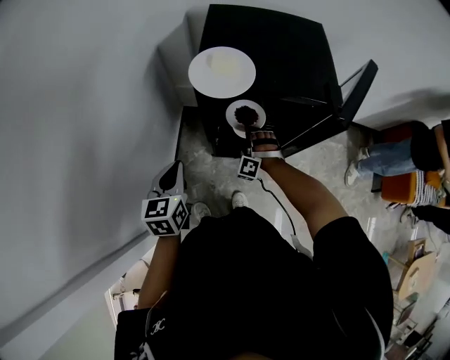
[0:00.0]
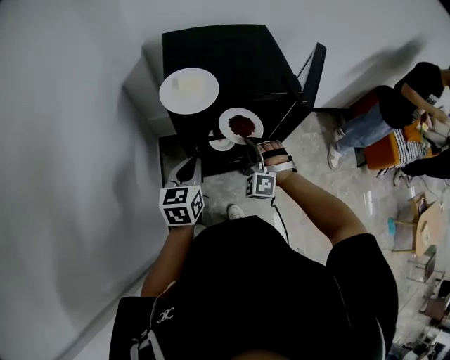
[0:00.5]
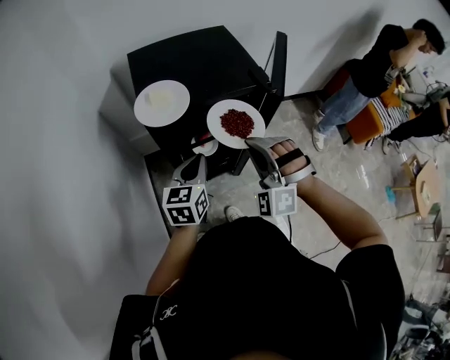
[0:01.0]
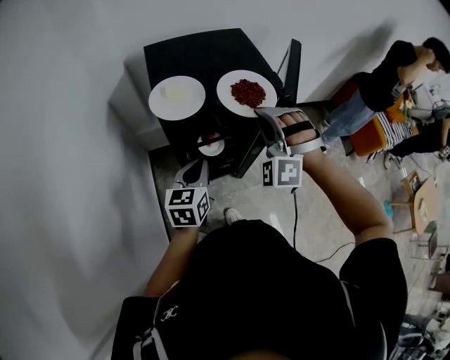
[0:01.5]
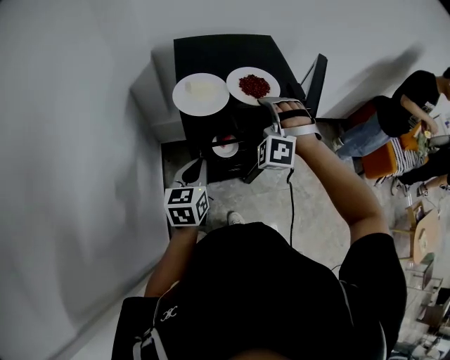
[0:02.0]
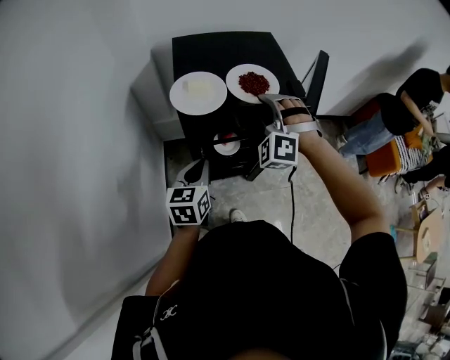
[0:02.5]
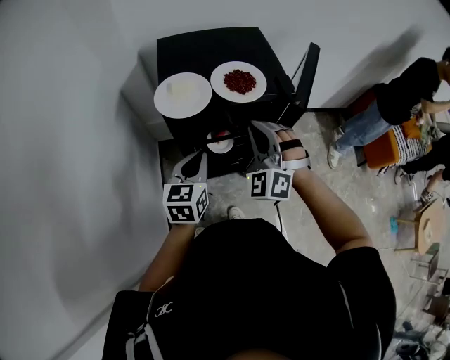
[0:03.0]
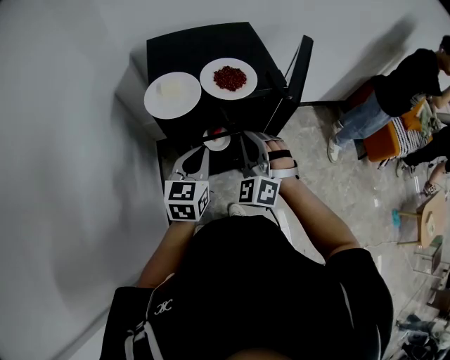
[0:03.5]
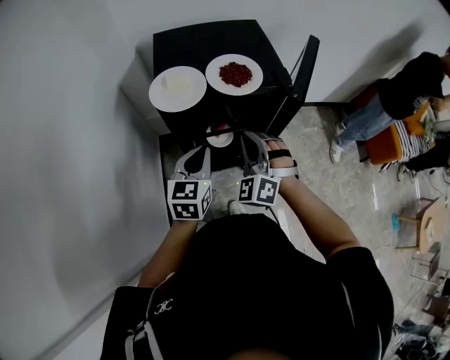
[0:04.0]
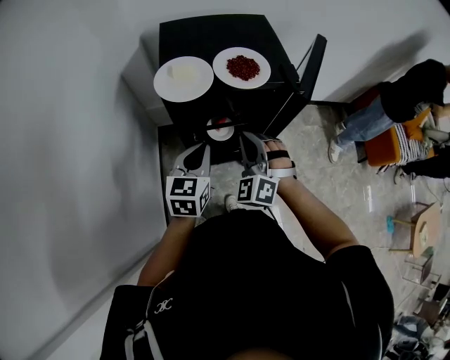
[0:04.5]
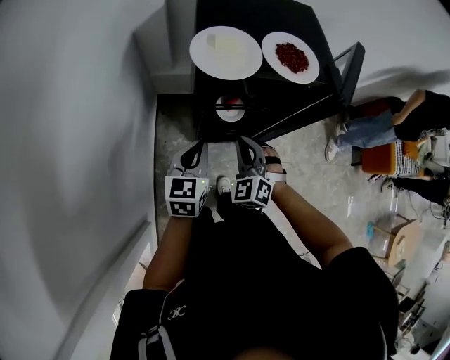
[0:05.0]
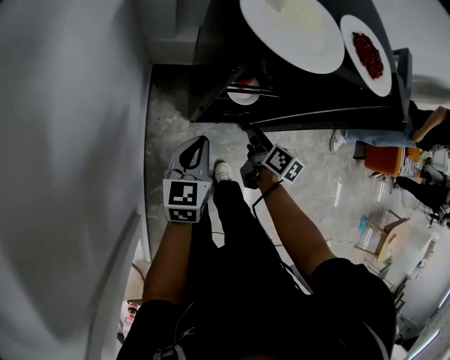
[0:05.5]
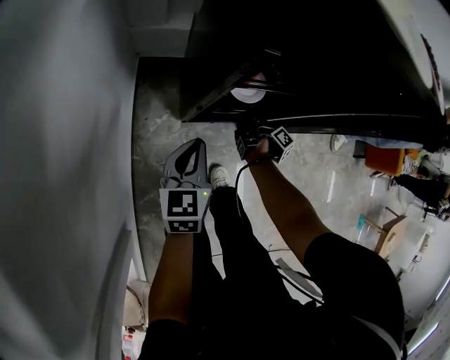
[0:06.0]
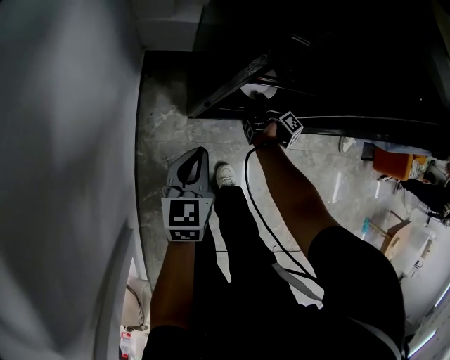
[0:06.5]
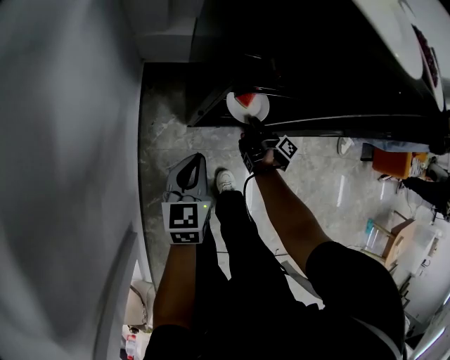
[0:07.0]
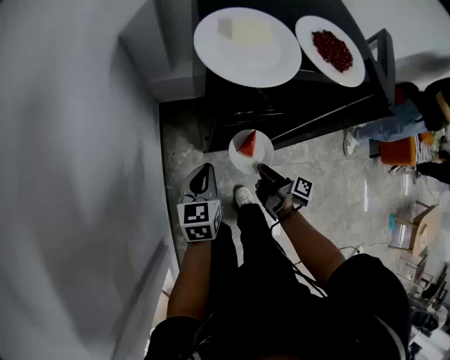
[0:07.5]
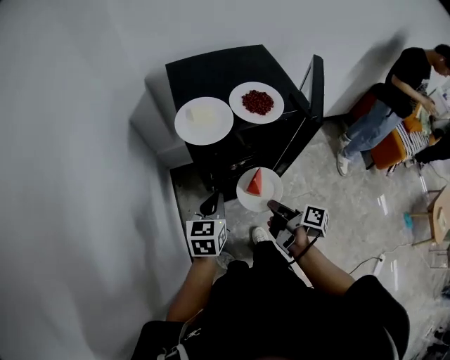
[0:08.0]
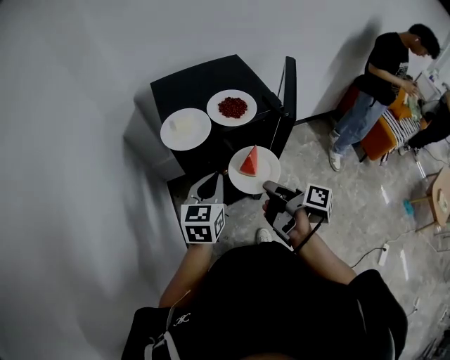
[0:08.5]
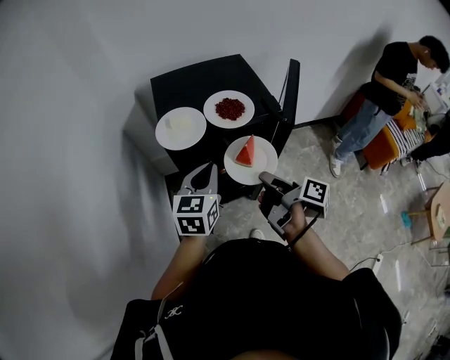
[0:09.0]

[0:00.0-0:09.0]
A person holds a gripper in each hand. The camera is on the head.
0:02.0 to 0:04.5: The left gripper ends up roughly 5 cm from where it was.
0:04.5 to 0:07.0: The left gripper travels downward by about 30 cm.
0:07.0 to 0:09.0: The left gripper shifts approximately 35 cm upward, and rotates approximately 20 degrees.

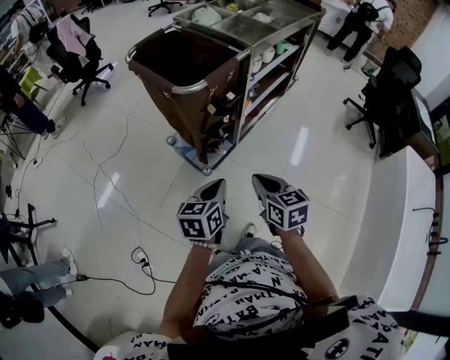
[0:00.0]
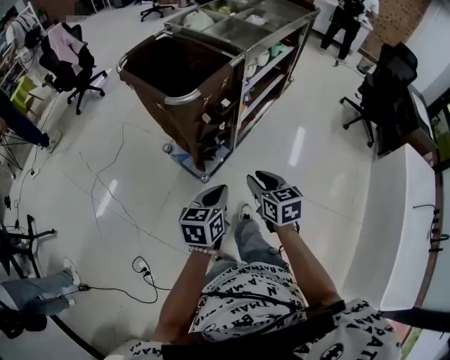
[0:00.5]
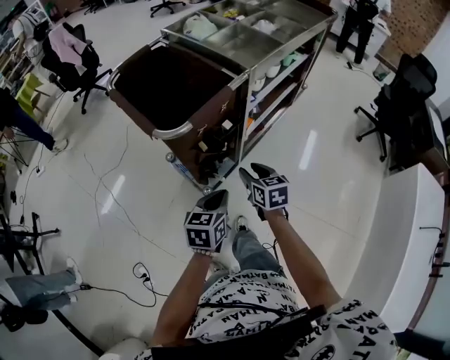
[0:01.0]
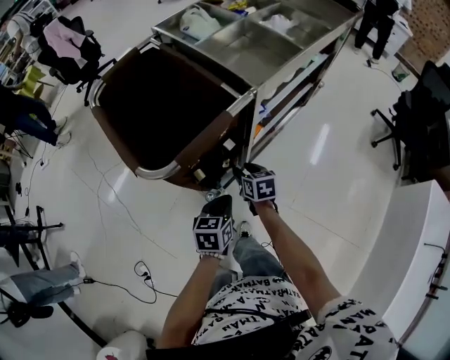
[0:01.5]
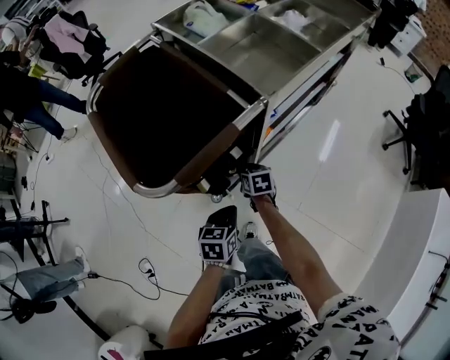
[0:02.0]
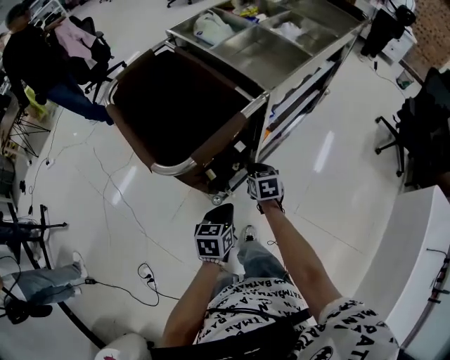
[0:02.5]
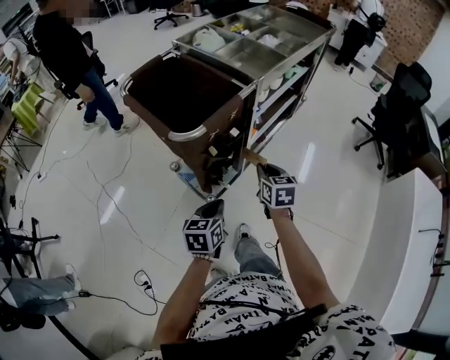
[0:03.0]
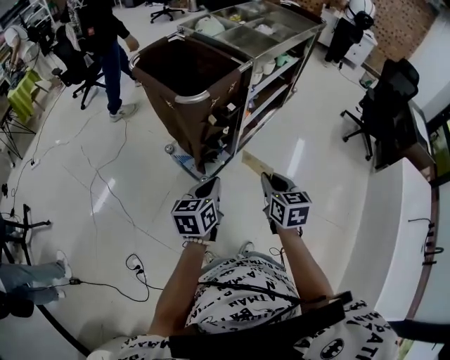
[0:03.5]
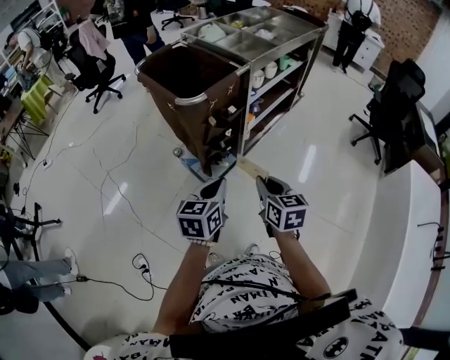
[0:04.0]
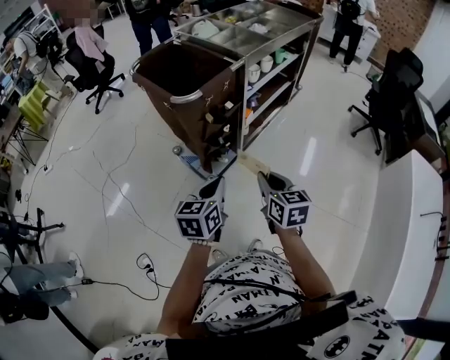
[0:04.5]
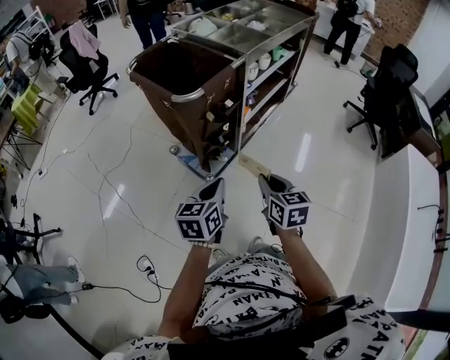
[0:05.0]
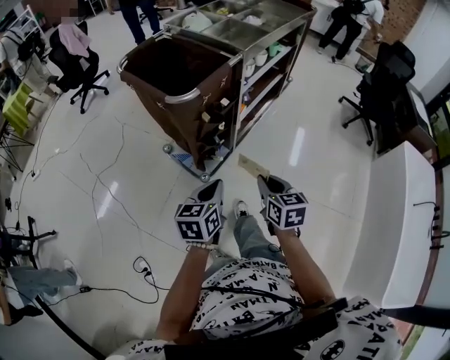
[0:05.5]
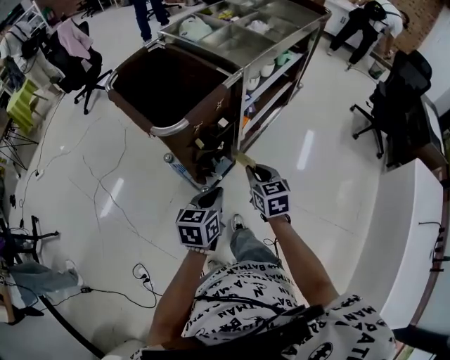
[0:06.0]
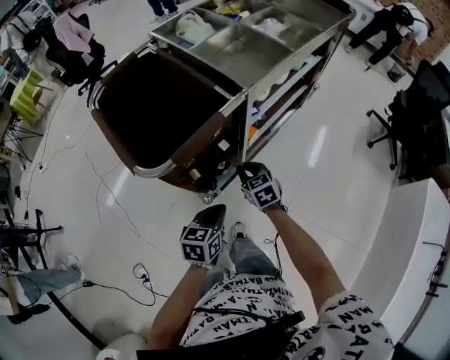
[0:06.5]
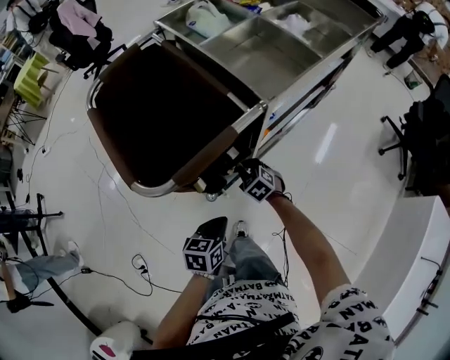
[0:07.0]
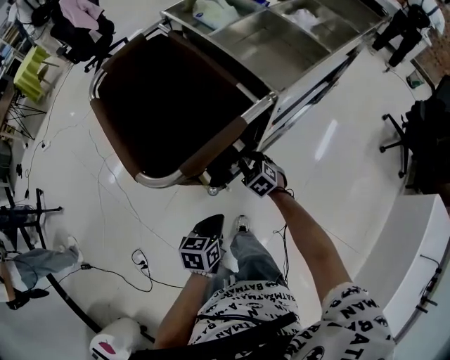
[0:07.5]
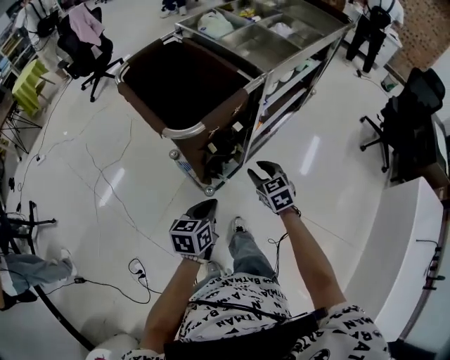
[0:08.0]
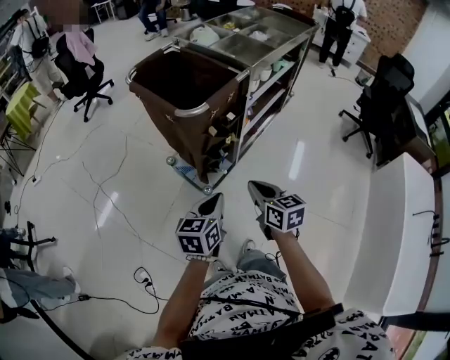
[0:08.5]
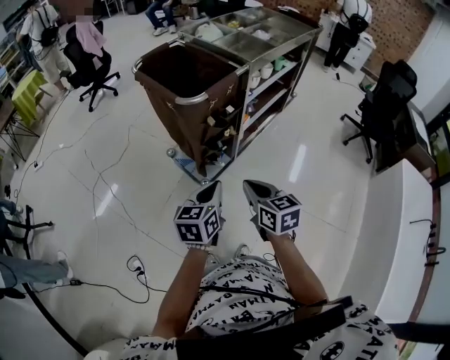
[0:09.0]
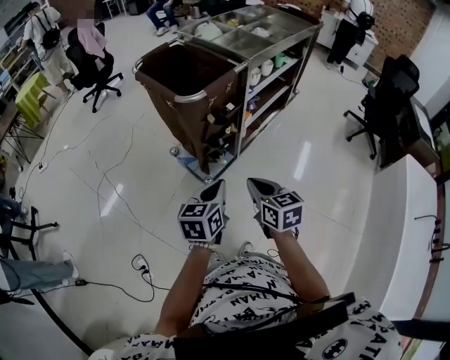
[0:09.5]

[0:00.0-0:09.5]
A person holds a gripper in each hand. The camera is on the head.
0:00.0 to 0:02.0: The right gripper travels forward and downward by approximately 50 cm, changes its angle by approximately 20 degrees, and opens its fingers. The left gripper goes about 30 cm forward and downward.
0:02.0 to 0:04.0: The left gripper moves backward and upward, approximately 30 cm, and swivels some 20 degrees; the right gripper travels backward and upward by about 50 cm, and swivels some 30 degrees.
0:04.0 to 0:05.5: The grippers make only small movements.
0:05.5 to 0:07.5: The left gripper travels forward and downward by approximately 20 cm, and swivels some 20 degrees, while the right gripper travels forward and downward by about 40 cm, and rolls counterclockwise, seen from behind, by roughly 40 degrees.
0:07.5 to 0:09.5: The right gripper travels backward and upward by about 50 cm, rotates approximately 50 degrees, and closes its fingers; the left gripper heads backward and upward, covering about 25 cm, and rotates about 20 degrees.

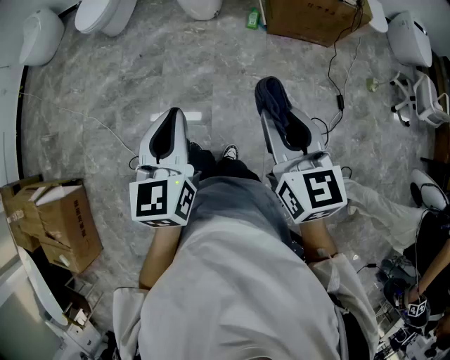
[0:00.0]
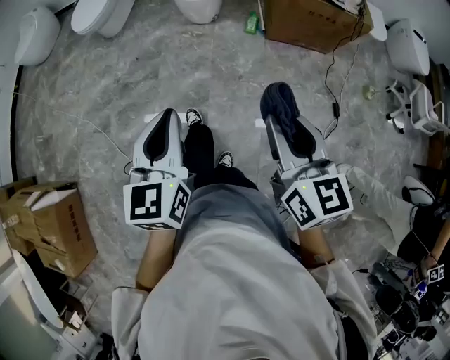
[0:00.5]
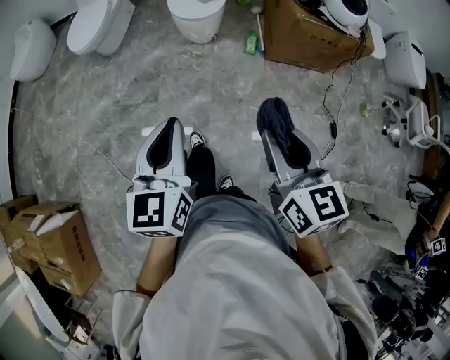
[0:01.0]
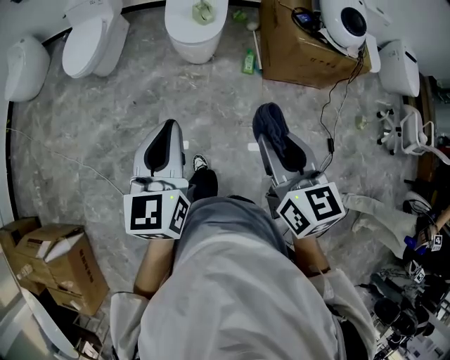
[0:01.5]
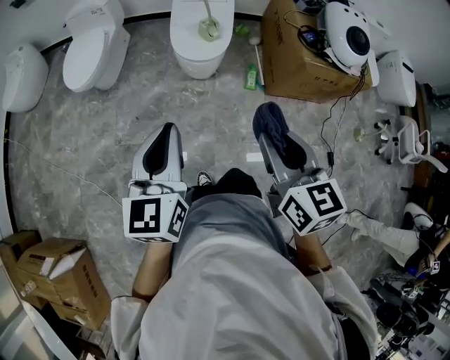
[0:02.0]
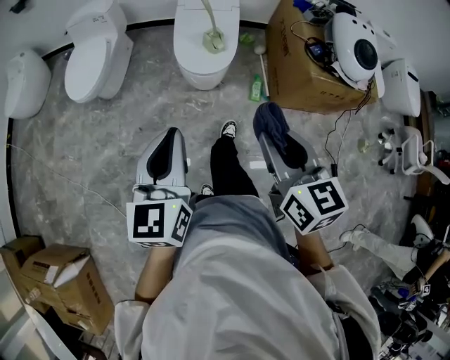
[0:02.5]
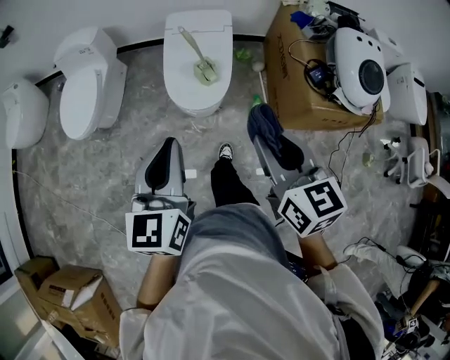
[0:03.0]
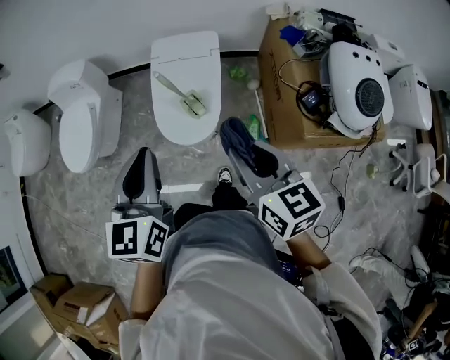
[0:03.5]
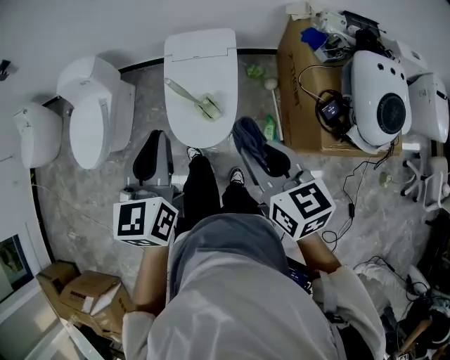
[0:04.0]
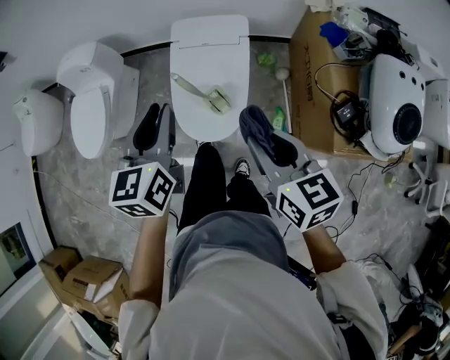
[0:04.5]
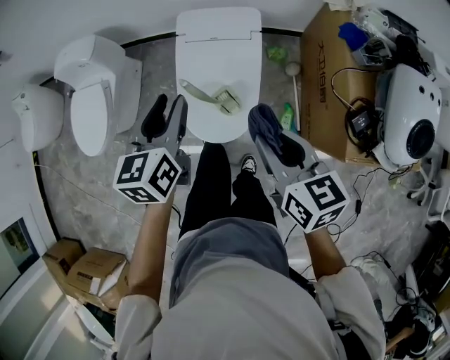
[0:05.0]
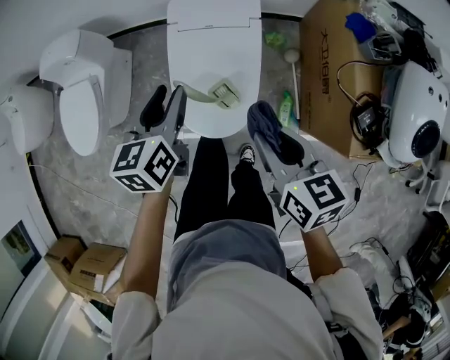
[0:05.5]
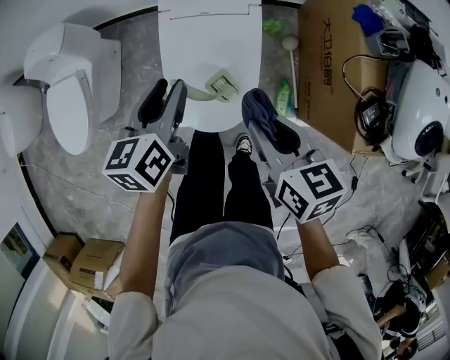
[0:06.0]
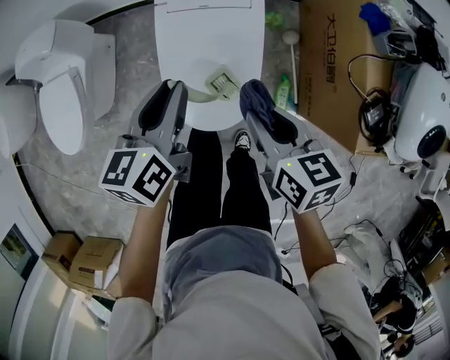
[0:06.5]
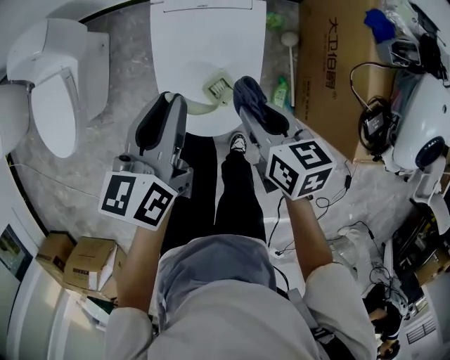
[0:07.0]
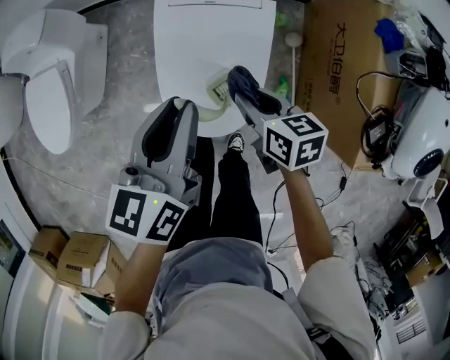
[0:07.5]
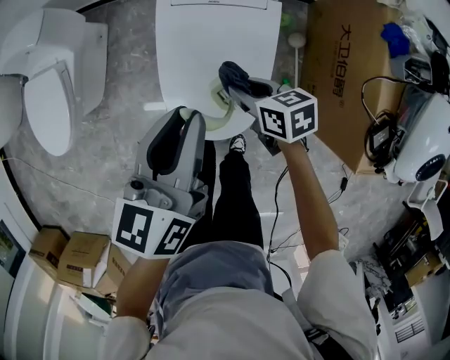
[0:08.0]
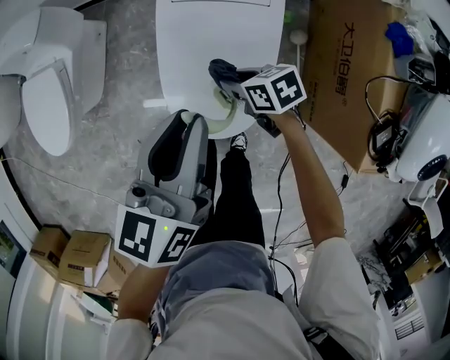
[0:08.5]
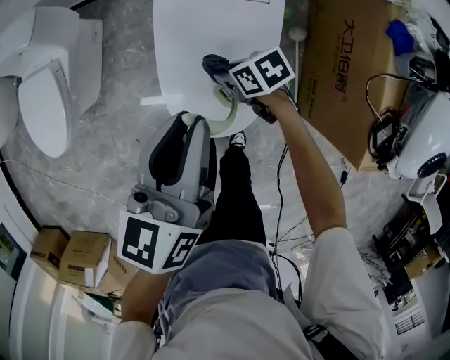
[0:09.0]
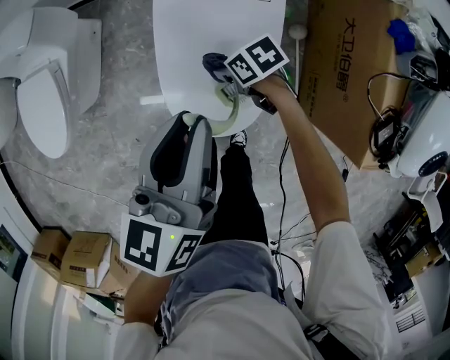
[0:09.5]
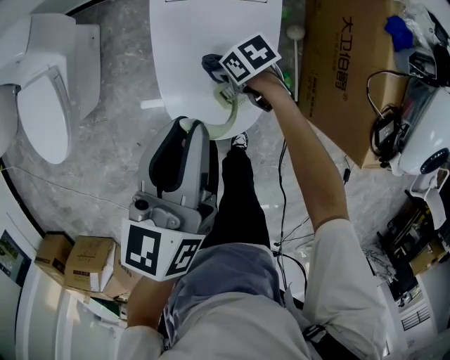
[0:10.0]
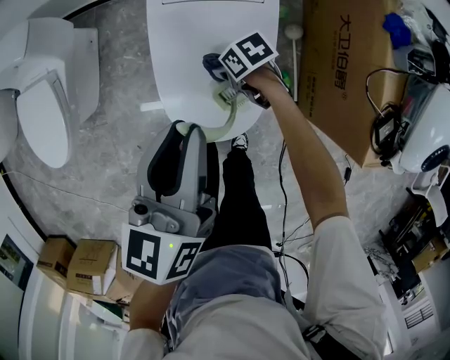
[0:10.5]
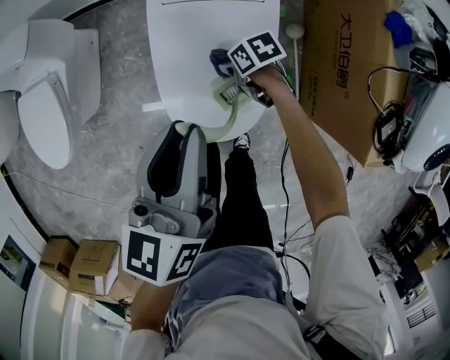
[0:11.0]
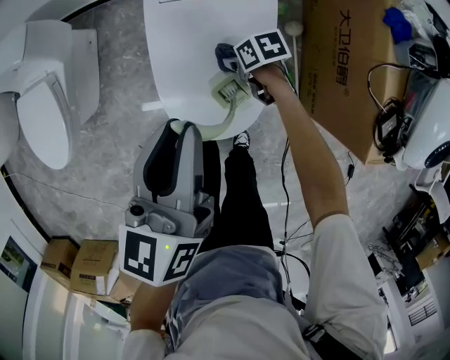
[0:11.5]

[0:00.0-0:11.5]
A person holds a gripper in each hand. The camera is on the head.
0:00.0 to 0:02.0: The left gripper moves approximately 40 cm.
0:02.0 to 0:04.0: The left gripper moves some 50 cm.
0:04.0 to 0:06.0: The left gripper ends up approximately 30 cm from where it was, and changes its angle by about 30 degrees.
